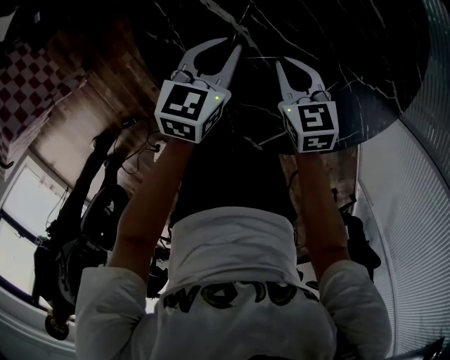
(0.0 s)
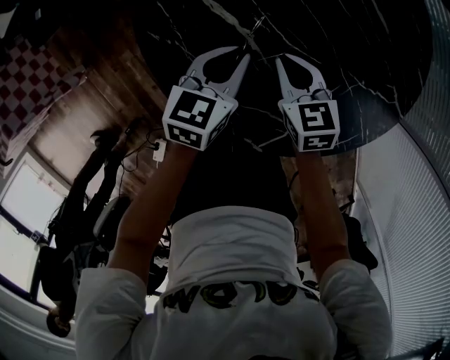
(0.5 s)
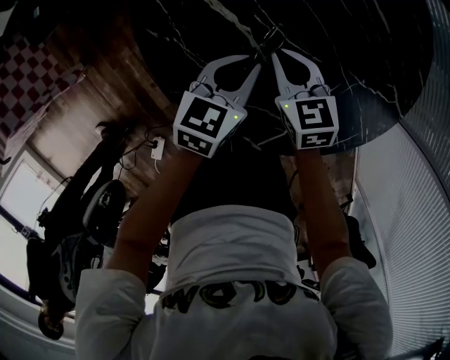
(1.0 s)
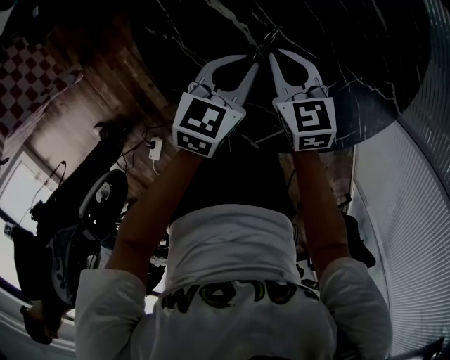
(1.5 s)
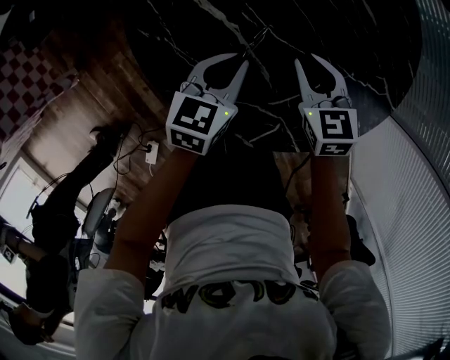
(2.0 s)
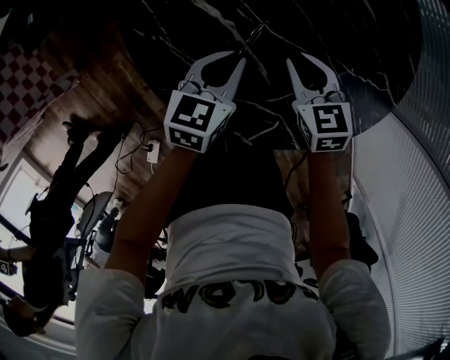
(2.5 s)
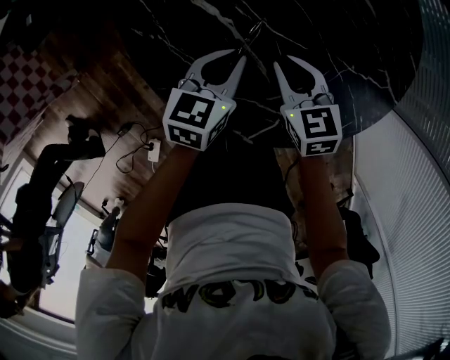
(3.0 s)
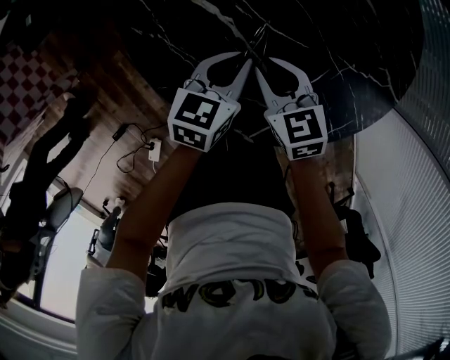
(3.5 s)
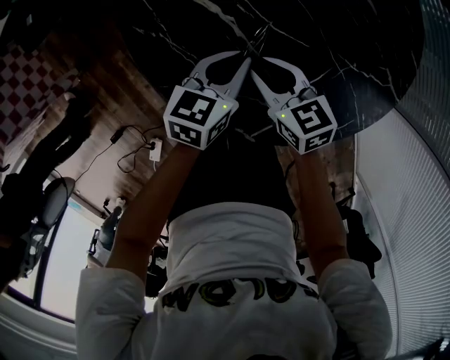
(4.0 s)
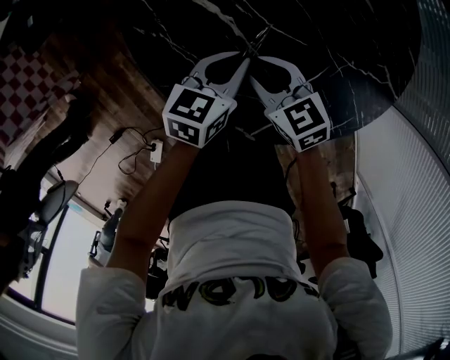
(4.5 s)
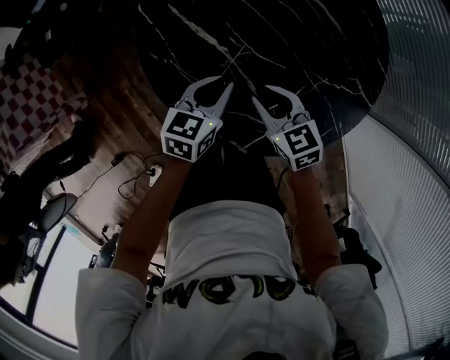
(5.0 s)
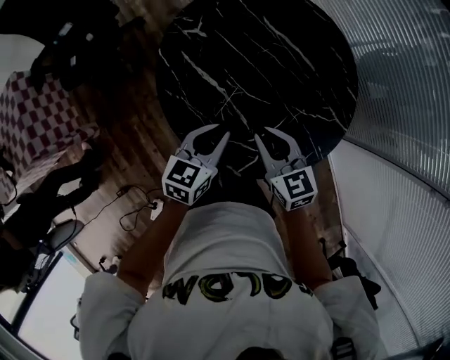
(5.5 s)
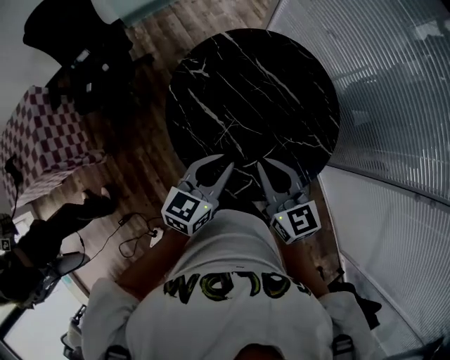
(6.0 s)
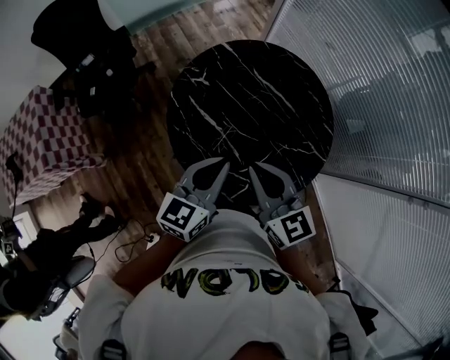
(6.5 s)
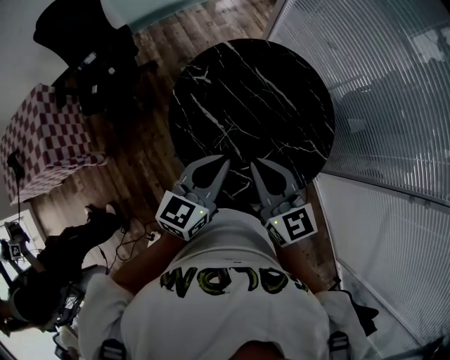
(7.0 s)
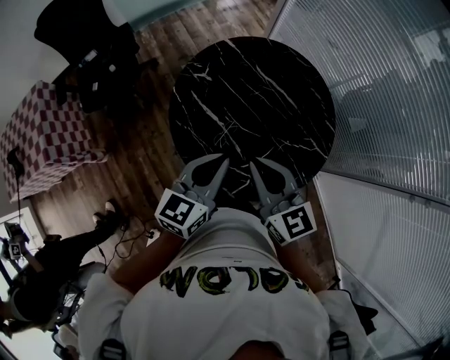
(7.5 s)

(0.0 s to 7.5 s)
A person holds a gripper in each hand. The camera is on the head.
0.0 s - 2.0 s: The right gripper heads to the right, covering about 5 cm, while the left gripper shifts by some 5 cm.
2.0 s - 4.0 s: The right gripper shifts roughly 10 cm to the left and backward, and swivels approximately 20 degrees.
4.0 s - 5.5 s: The two grippers go approximately 20 cm upward.
5.5 s - 7.5 s: Both grippers move upward, about 20 cm.

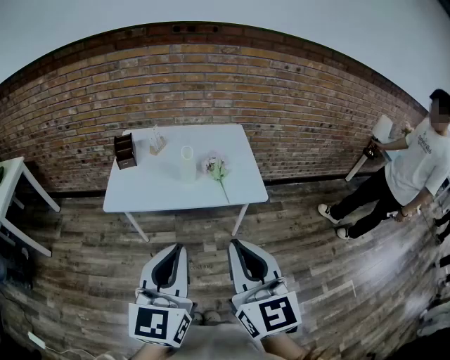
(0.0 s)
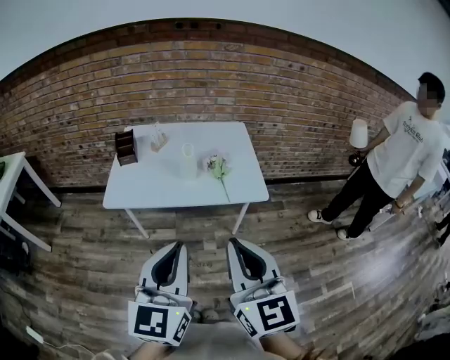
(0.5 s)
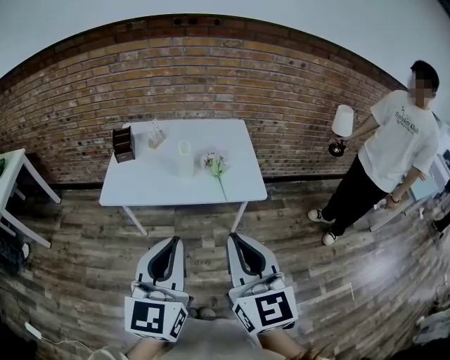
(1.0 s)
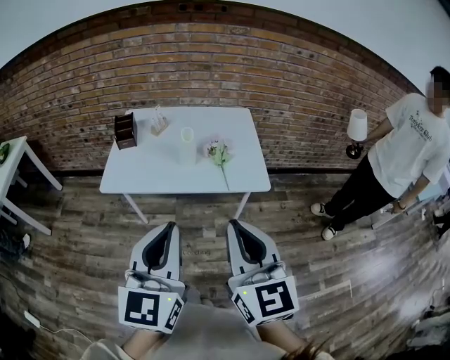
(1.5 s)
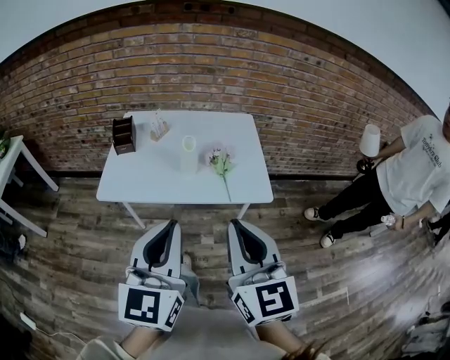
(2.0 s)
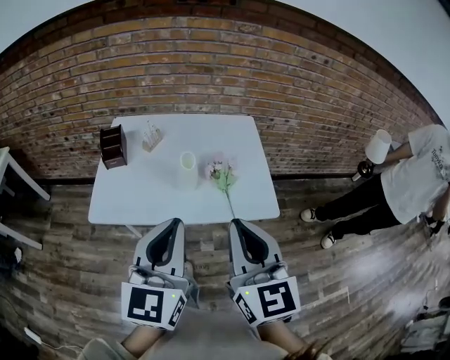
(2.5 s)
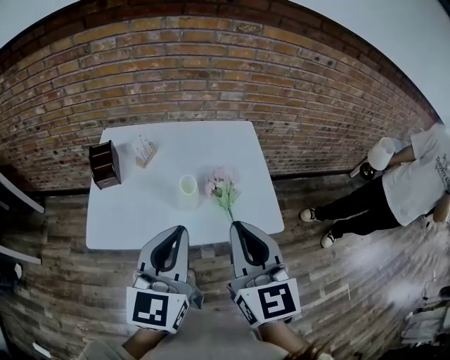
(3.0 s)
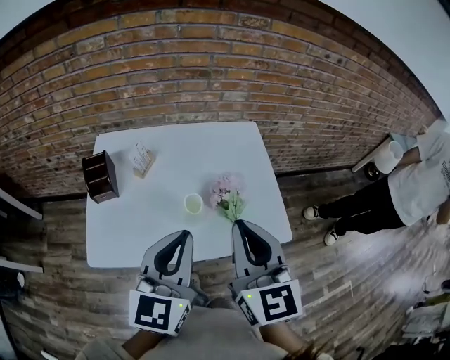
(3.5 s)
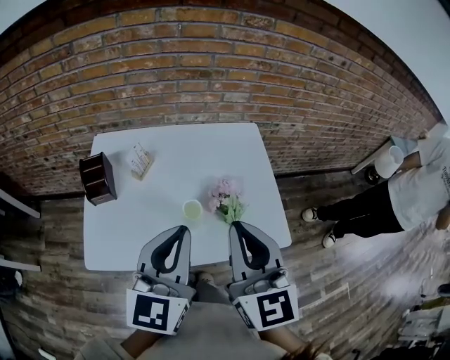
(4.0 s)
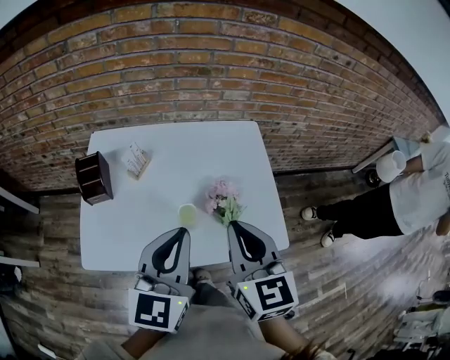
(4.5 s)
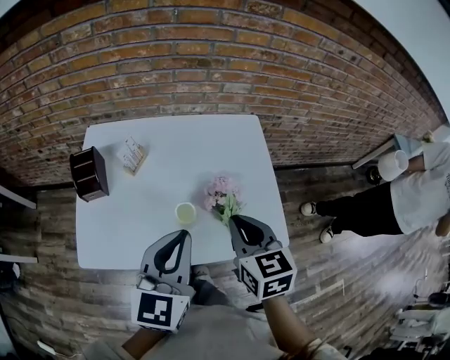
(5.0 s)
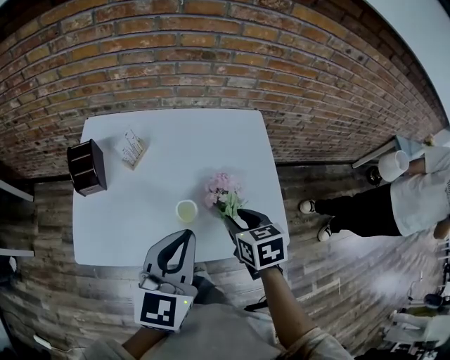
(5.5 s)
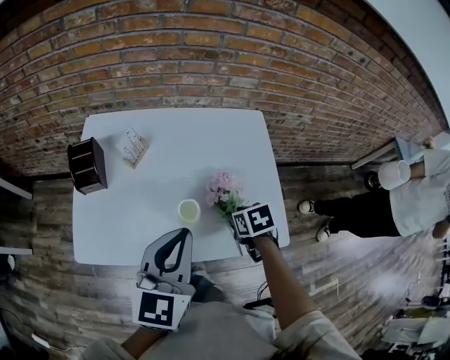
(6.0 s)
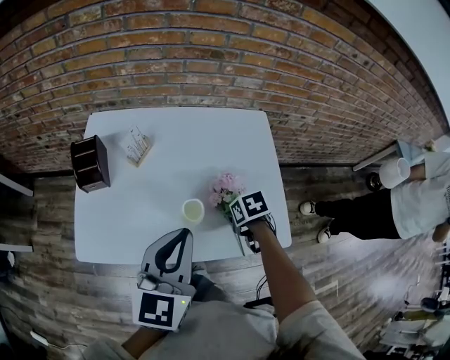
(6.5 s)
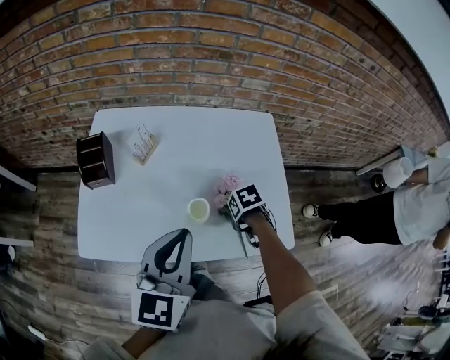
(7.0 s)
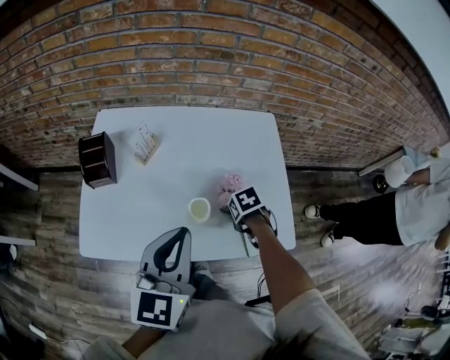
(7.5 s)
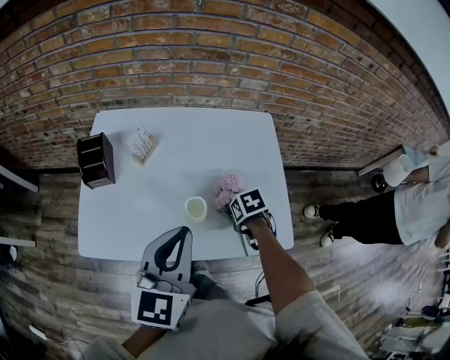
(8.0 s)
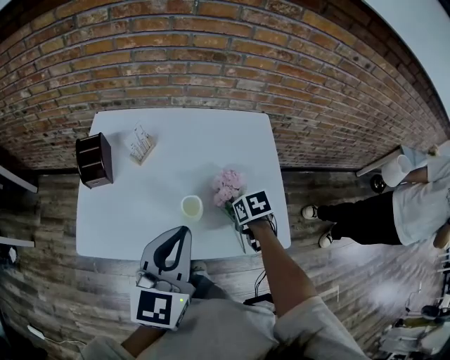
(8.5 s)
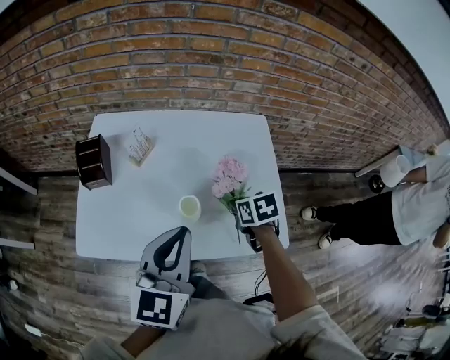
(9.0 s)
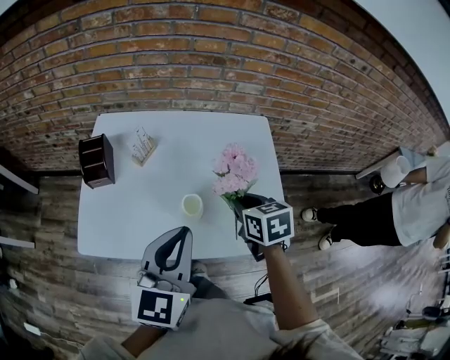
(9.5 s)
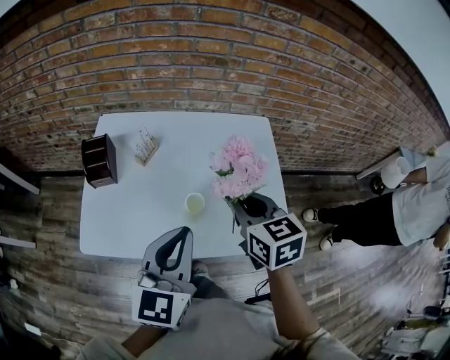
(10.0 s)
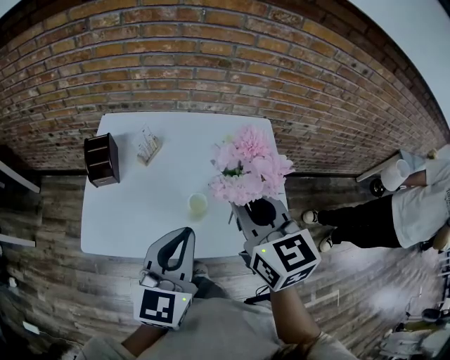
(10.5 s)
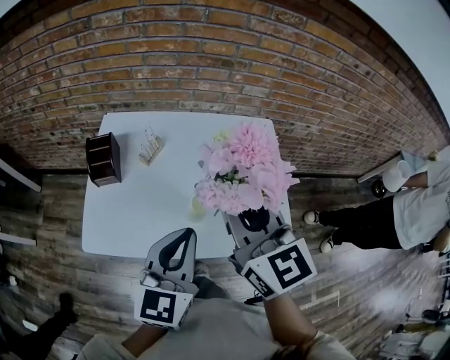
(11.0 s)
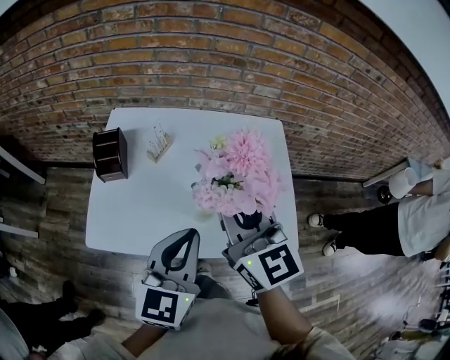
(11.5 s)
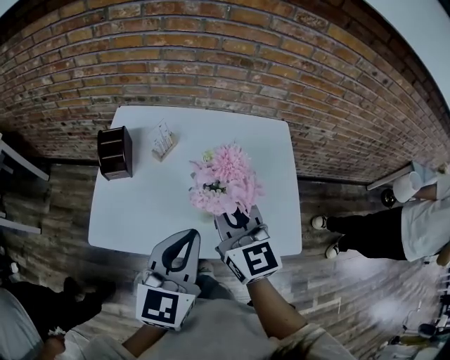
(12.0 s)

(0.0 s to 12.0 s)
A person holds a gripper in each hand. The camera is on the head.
0.0 s - 2.0 s: Both grippers travel together forward, roughly 10 cm.
2.0 s - 4.0 s: Both grippers move forward, about 30 cm.
4.0 s - 6.0 s: The left gripper is displaced downward by approximately 5 cm. Meanwhile the right gripper goes about 30 cm downward, tilts its fingers roughly 60 degrees downward, and opens up.
6.0 s - 8.0 s: The right gripper shifts some 5 cm downward, and closes.
8.0 s - 10.0 s: The right gripper is displaced upward by about 25 cm, and points its fingers some 50 degrees further upward.
10.0 s - 12.0 s: The right gripper travels to the left by some 10 cm, travels upward and back again, some 10 cm each way, and swivels some 30 degrees.

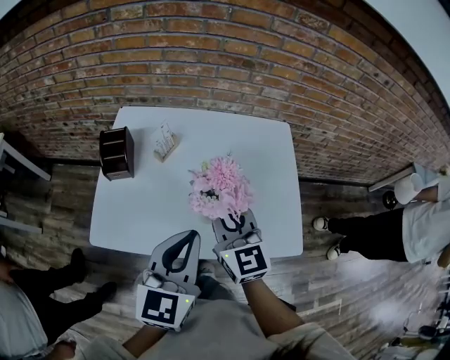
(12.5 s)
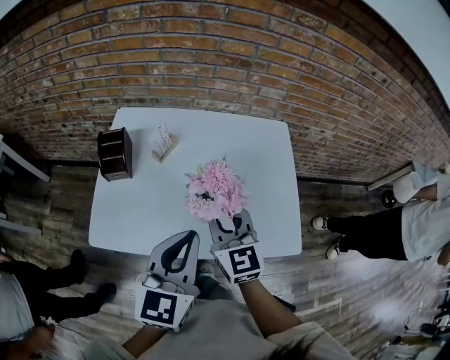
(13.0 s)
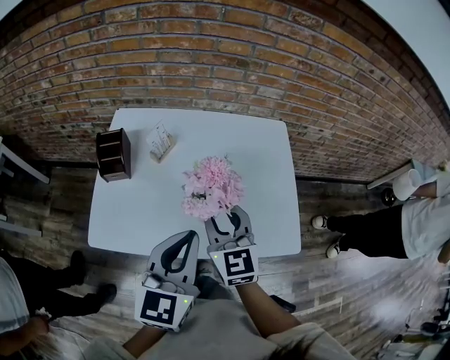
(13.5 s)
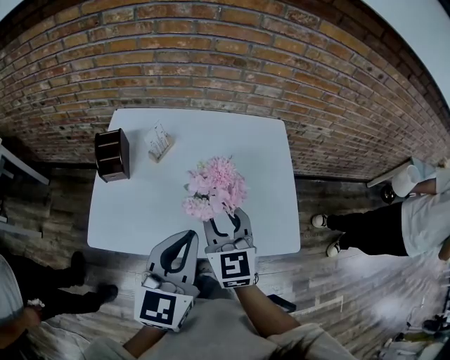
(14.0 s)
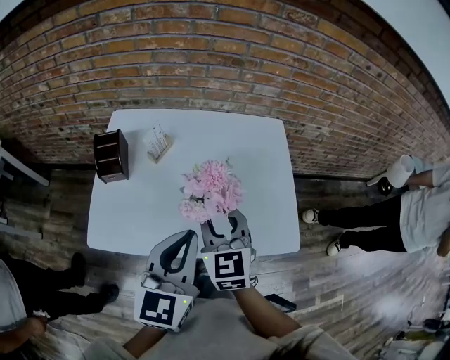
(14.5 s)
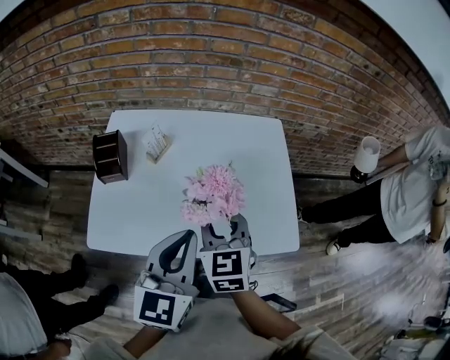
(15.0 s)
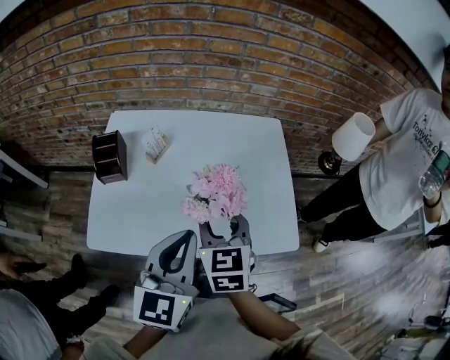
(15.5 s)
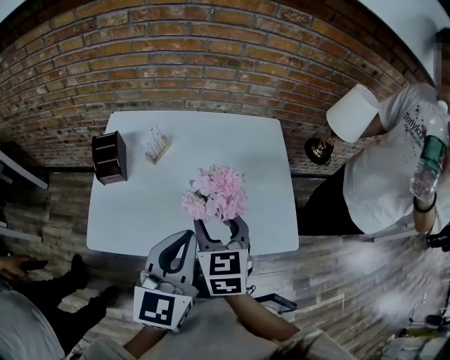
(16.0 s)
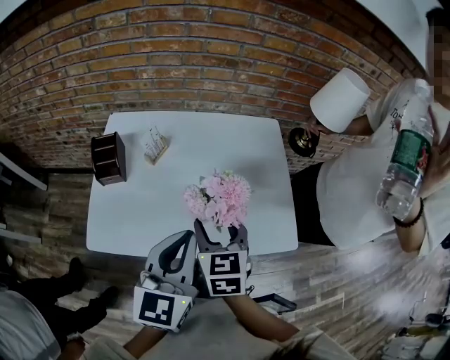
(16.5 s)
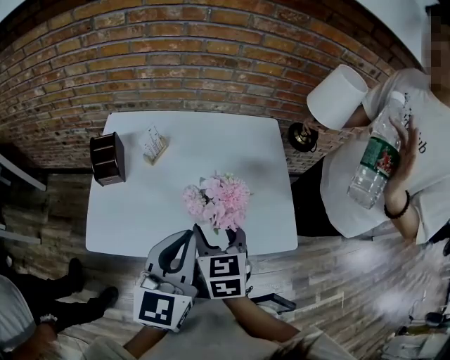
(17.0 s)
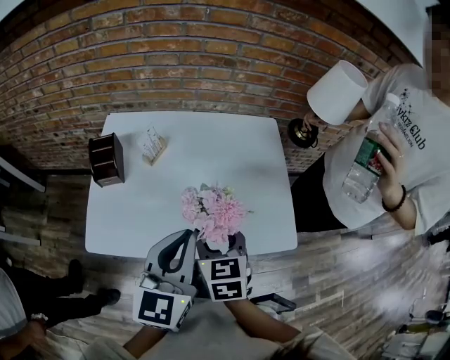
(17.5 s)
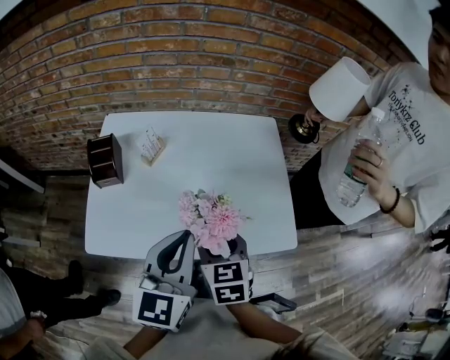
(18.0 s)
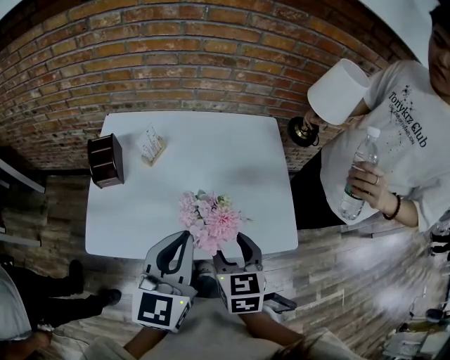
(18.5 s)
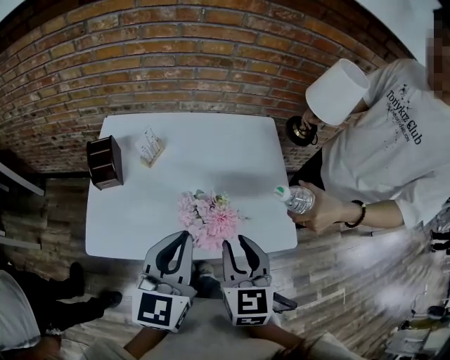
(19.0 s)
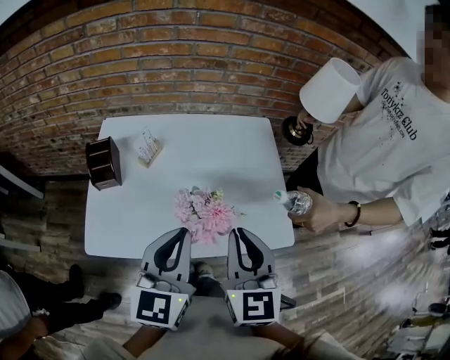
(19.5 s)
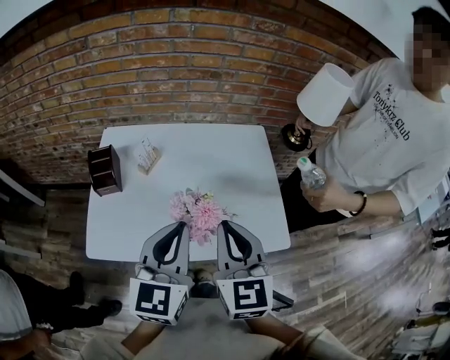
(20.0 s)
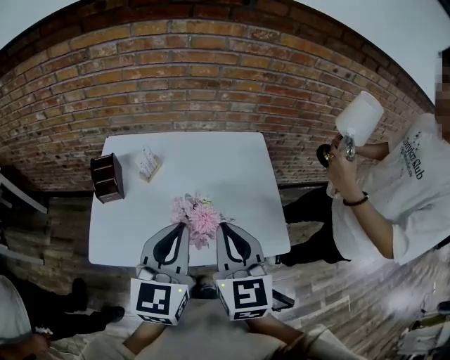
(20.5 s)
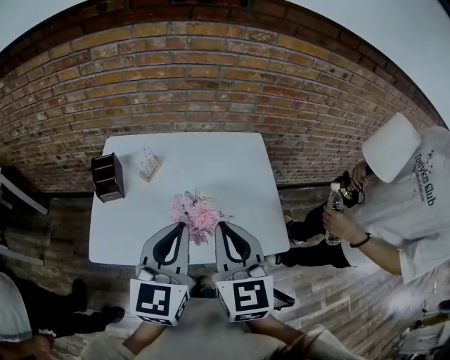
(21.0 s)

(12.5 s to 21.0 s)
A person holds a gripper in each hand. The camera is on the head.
12.5 s - 14.5 s: There are only small adjustments of the grippers.
14.5 s - 16.5 s: The right gripper opens.
16.5 s - 19.0 s: The right gripper goes roughly 10 cm to the right and backward, and closes its fingers.
19.0 s - 21.0 s: The right gripper is displaced upward by roughly 10 cm, and closes. Meanwhile the left gripper shifts by about 5 cm.
